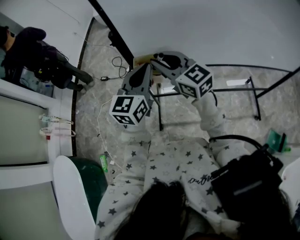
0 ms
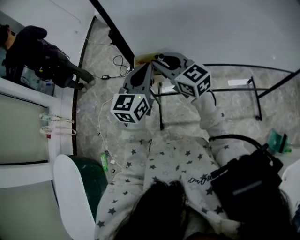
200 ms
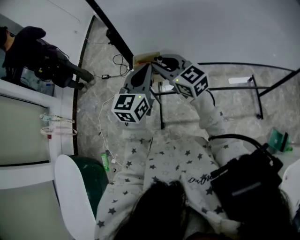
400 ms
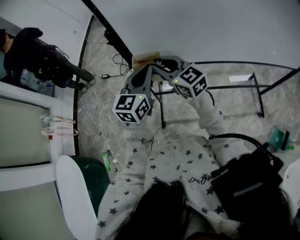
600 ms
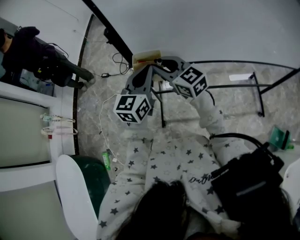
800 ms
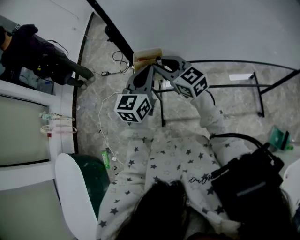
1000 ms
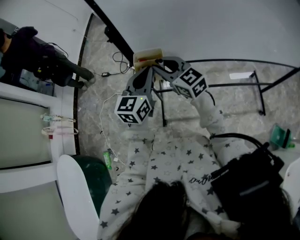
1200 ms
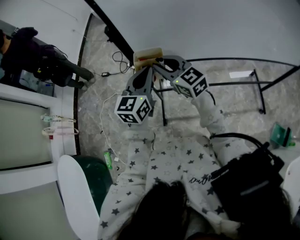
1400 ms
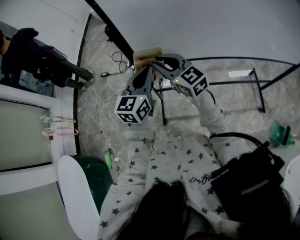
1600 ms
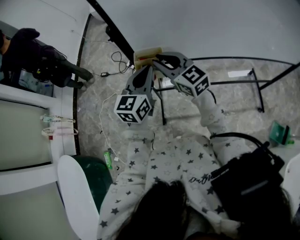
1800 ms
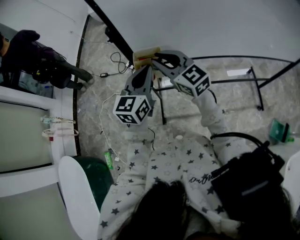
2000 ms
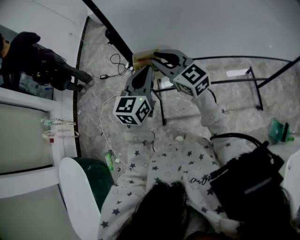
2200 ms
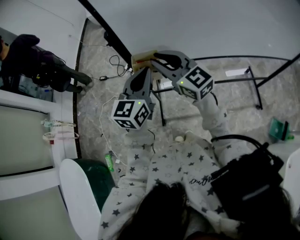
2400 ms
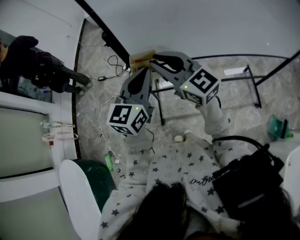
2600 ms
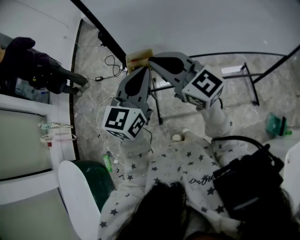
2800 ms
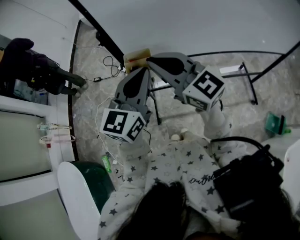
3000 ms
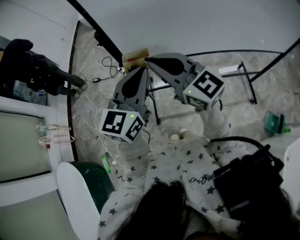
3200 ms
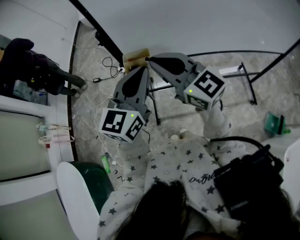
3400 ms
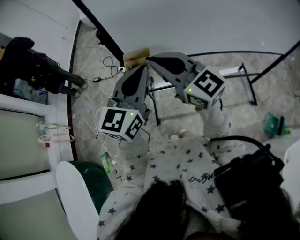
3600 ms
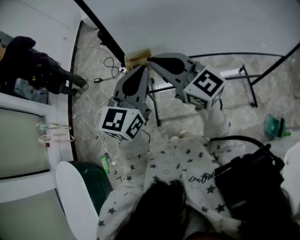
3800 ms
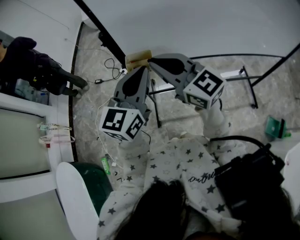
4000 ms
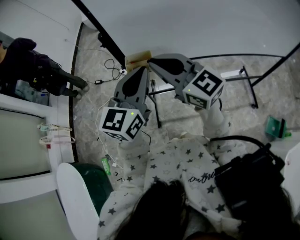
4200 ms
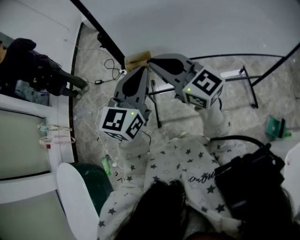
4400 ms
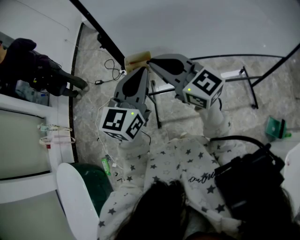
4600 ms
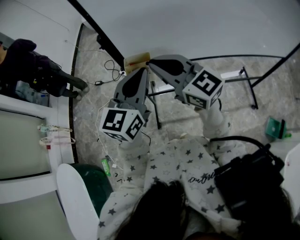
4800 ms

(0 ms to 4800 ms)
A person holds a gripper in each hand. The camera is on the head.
0 ms - 1600 ms: The right gripper moves downward, some 5 cm.
1600 ms - 3200 ms: The right gripper heads upward and backward, covering approximately 10 cm. The left gripper moves upward, roughly 10 cm.
3200 ms - 4800 ms: The two grippers keep their place.

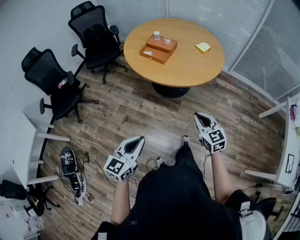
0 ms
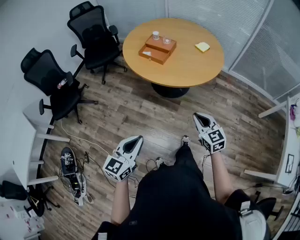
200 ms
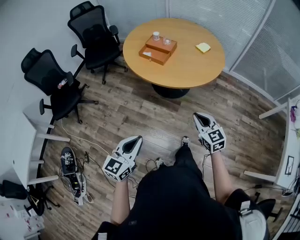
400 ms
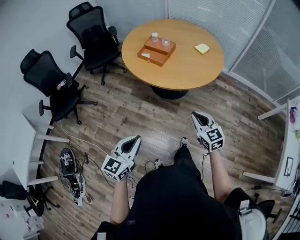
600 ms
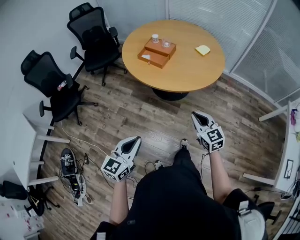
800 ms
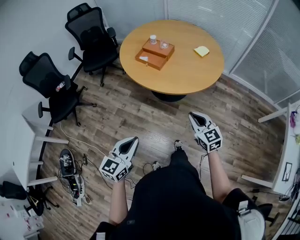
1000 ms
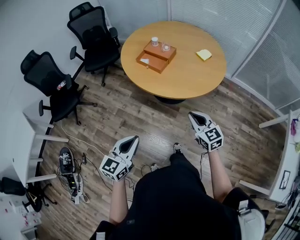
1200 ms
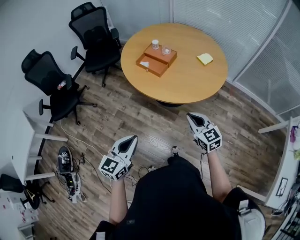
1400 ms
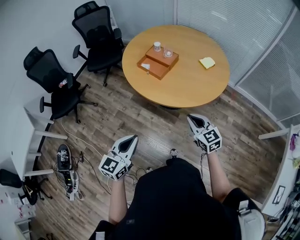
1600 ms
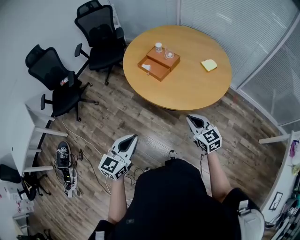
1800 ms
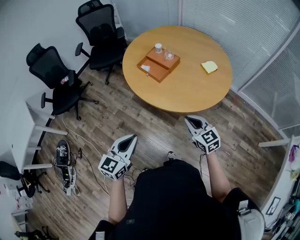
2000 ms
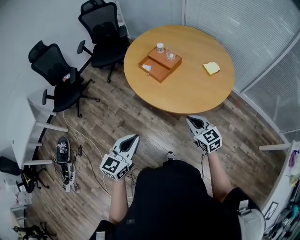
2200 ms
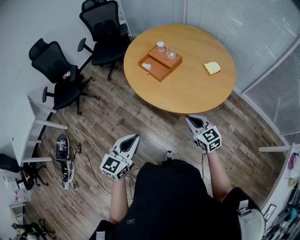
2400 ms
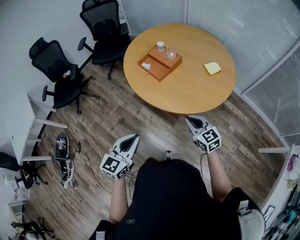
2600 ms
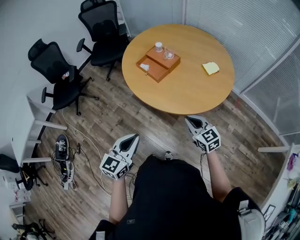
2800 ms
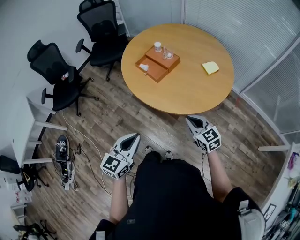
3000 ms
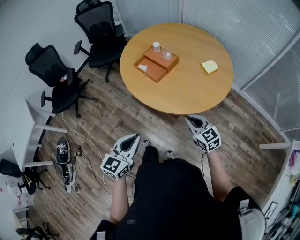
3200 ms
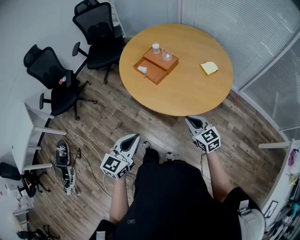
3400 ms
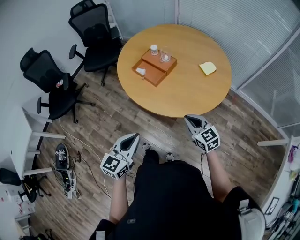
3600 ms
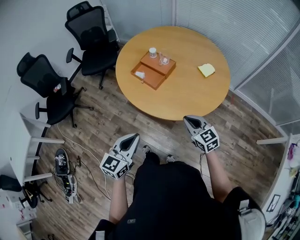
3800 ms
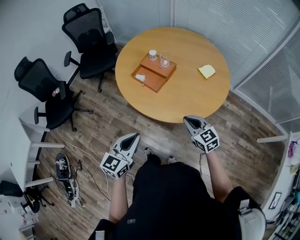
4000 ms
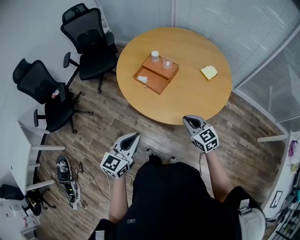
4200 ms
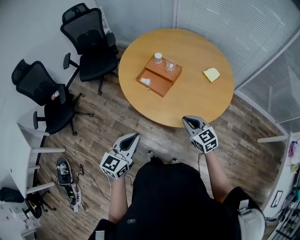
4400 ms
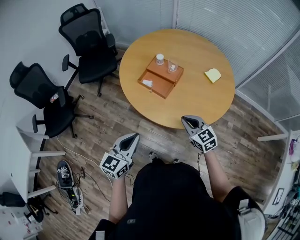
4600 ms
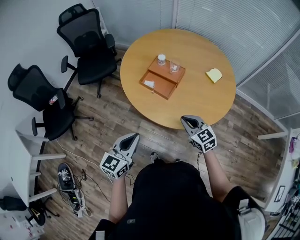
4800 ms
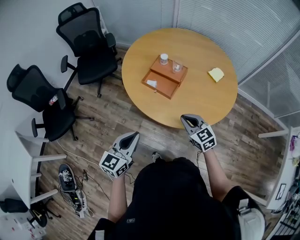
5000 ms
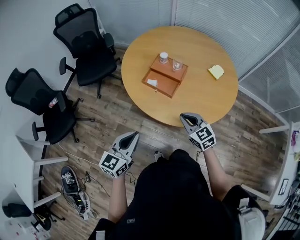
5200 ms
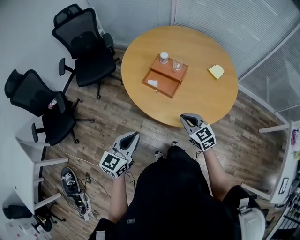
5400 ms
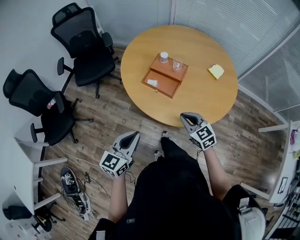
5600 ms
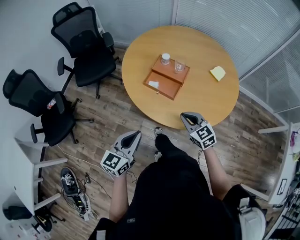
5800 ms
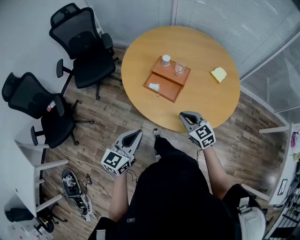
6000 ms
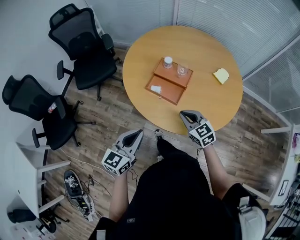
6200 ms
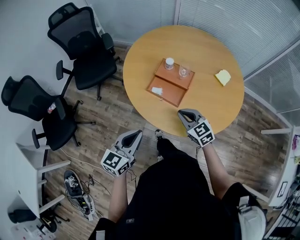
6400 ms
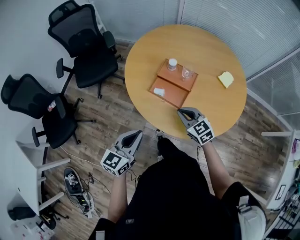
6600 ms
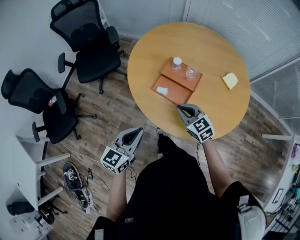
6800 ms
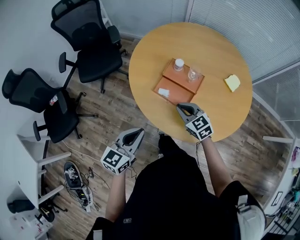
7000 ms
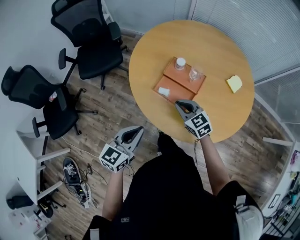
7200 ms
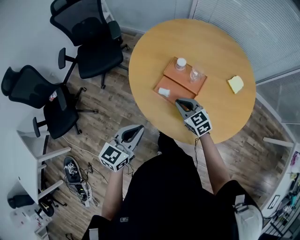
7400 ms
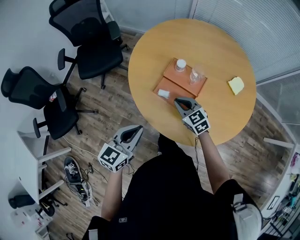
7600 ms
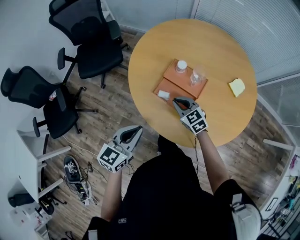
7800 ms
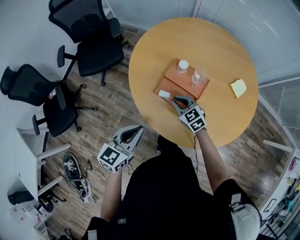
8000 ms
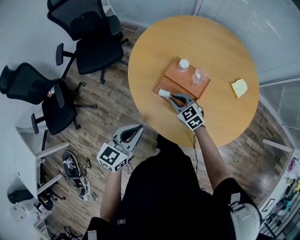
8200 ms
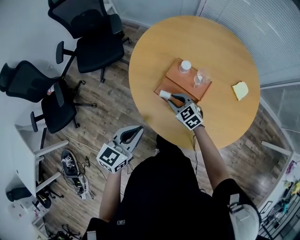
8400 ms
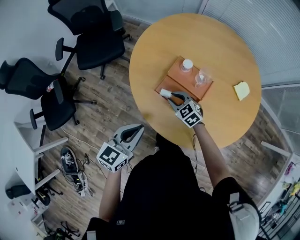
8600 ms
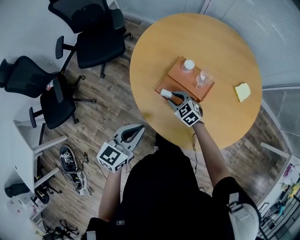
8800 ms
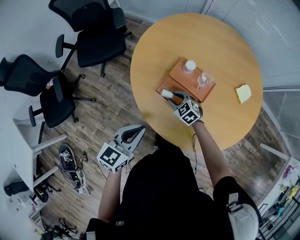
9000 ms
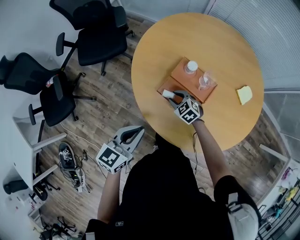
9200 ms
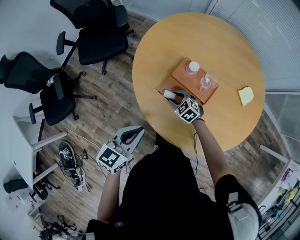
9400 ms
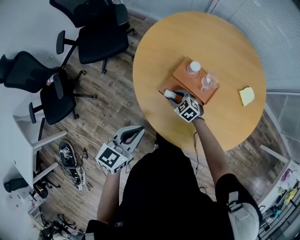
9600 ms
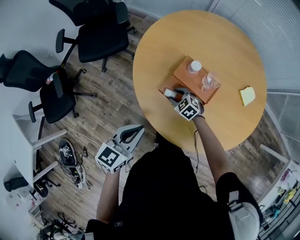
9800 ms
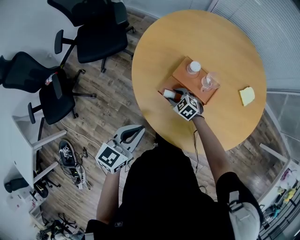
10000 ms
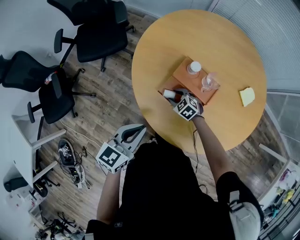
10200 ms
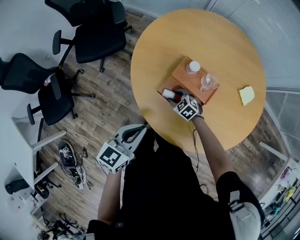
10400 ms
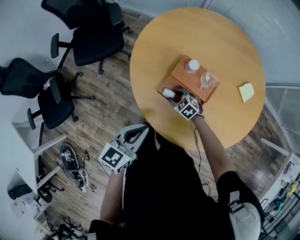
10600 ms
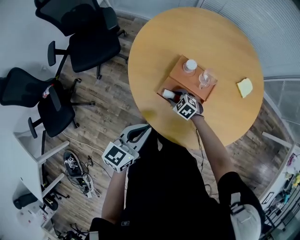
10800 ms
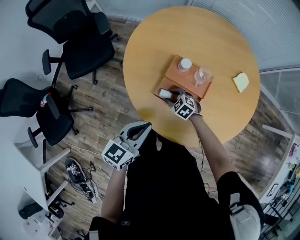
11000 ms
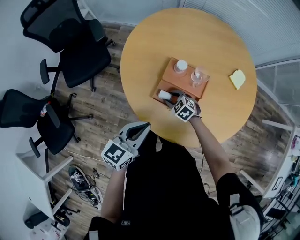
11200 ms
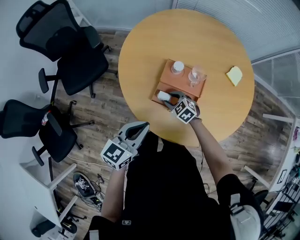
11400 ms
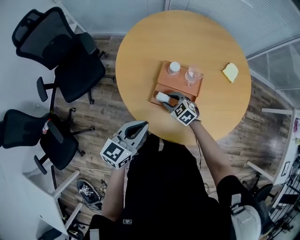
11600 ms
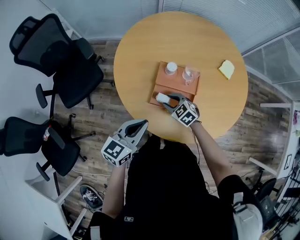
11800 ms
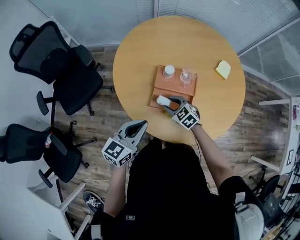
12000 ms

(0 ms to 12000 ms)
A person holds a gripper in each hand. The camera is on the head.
0 ms - 1600 ms: The right gripper goes roughly 15 cm forward. Meanwhile the left gripper is displaced forward and to the right by some 15 cm.
1600 ms - 3000 ms: The right gripper travels forward and to the right by about 10 cm. The left gripper goes about 10 cm to the right.
3000 ms - 4400 ms: The two grippers go approximately 15 cm forward and to the left.
4400 ms - 6000 ms: The left gripper heads forward and to the left, covering about 15 cm. Meanwhile the right gripper heads to the left and forward, covering approximately 15 cm.
6000 ms - 7600 ms: The grippers both shift forward by roughly 15 cm.
7600 ms - 9000 ms: The right gripper goes approximately 10 cm downward, changes its angle by some 20 degrees, and opens its fingers.
9000 ms - 10400 ms: The right gripper travels downward by about 5 cm.
10400 ms - 12000 ms: The left gripper changes place by some 5 cm, and rotates some 20 degrees. The right gripper goes some 10 cm upward, and turns by approximately 30 degrees.

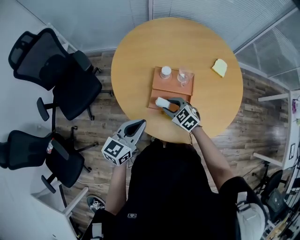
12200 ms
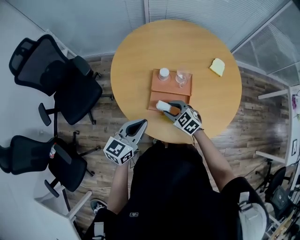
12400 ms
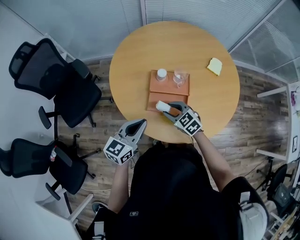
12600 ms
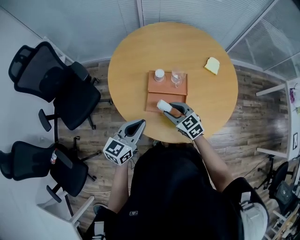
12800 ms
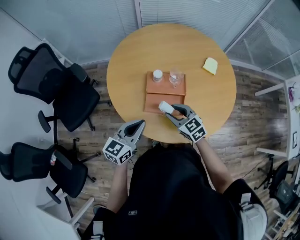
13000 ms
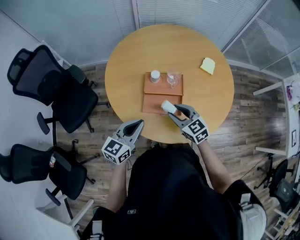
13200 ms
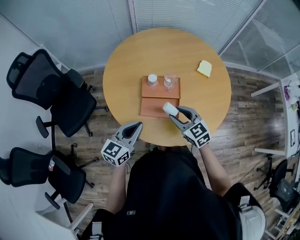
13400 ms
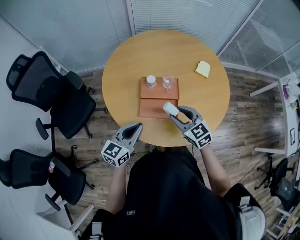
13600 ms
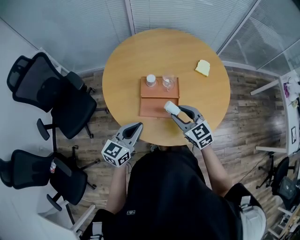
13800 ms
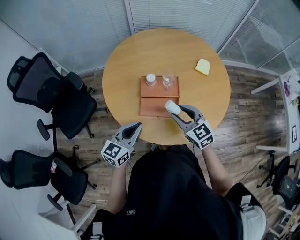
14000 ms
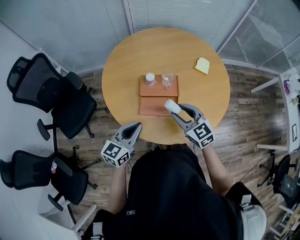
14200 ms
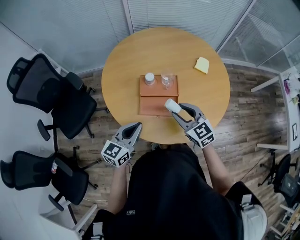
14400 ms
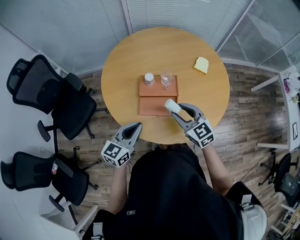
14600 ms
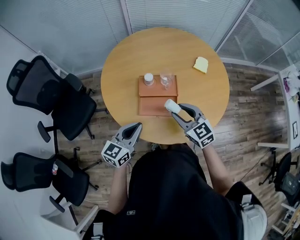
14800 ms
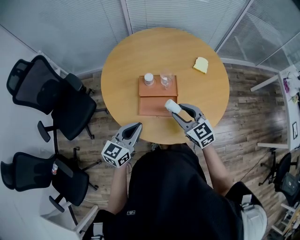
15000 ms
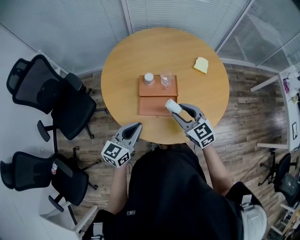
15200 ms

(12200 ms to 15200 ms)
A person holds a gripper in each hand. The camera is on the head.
12200 ms - 13800 ms: The right gripper shifts some 15 cm upward and to the right, and changes its angle by roughly 30 degrees.
13800 ms - 15200 ms: Both grippers stay about where they are.

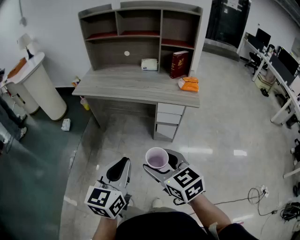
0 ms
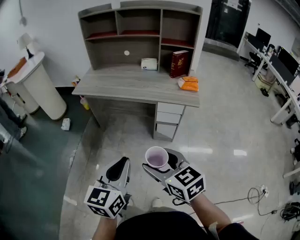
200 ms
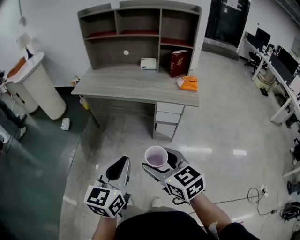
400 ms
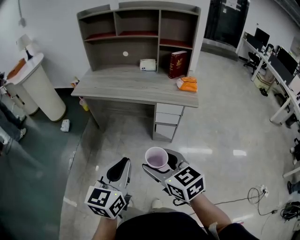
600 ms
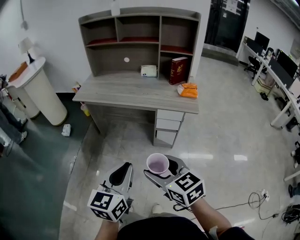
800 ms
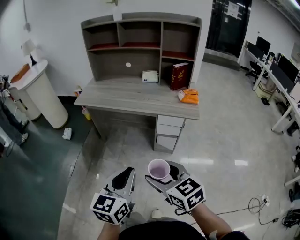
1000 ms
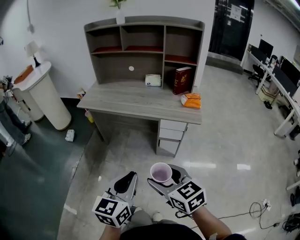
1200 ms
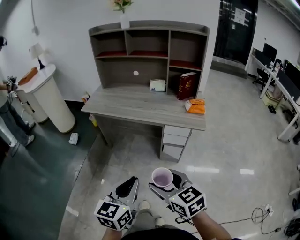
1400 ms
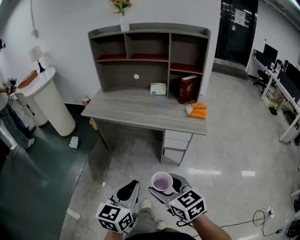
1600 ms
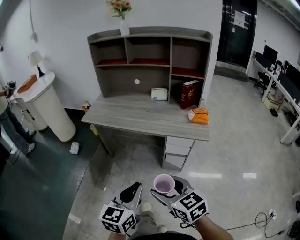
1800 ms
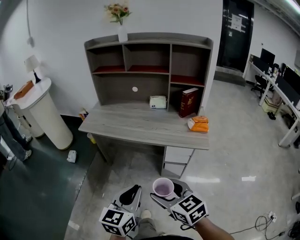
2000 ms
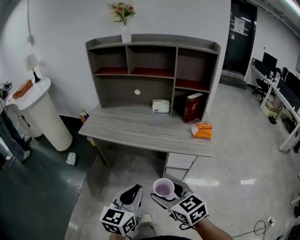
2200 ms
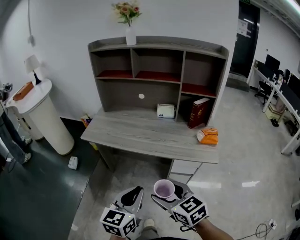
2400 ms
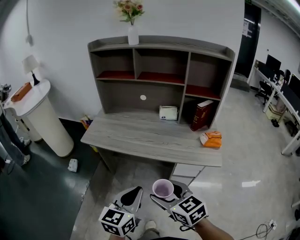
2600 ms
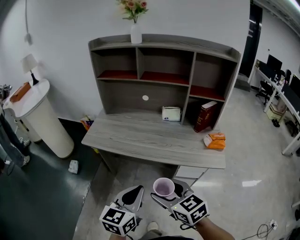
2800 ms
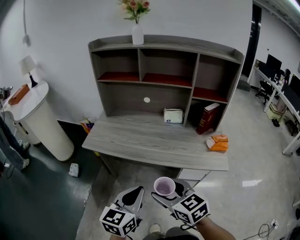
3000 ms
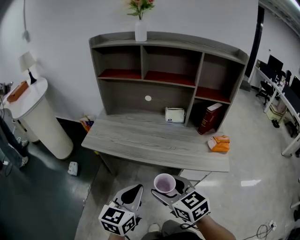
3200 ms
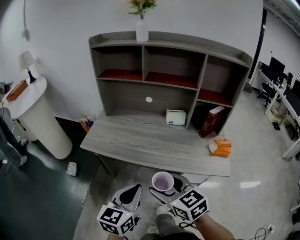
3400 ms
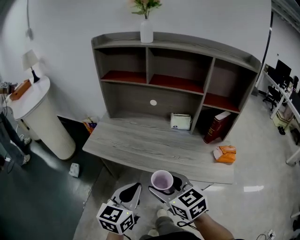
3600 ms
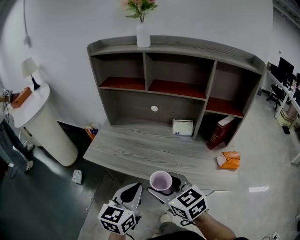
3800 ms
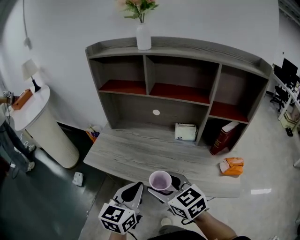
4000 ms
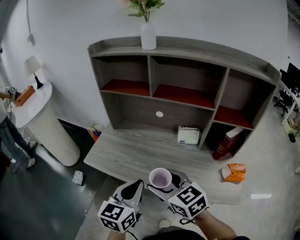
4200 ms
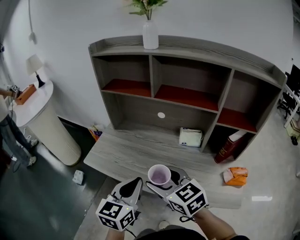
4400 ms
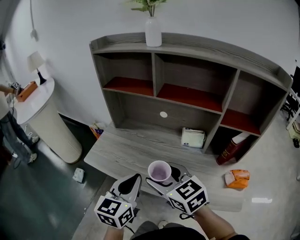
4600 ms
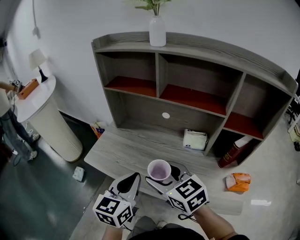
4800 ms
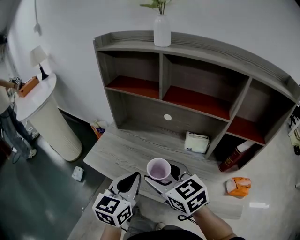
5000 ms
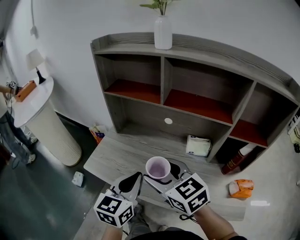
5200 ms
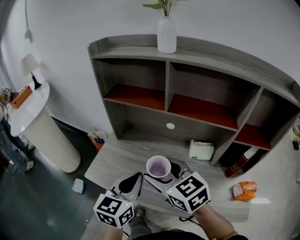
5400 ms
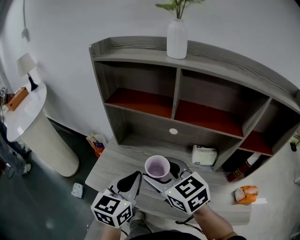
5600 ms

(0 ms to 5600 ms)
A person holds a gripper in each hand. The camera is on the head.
0 ms - 1400 ms: There are only small adjustments of the grippers.
1400 ms - 2800 ms: The two grippers go about 25 cm forward.
2800 ms - 4200 ms: Both grippers move forward, about 25 cm.
4200 ms - 5600 ms: Both grippers move forward, roughly 20 cm.
